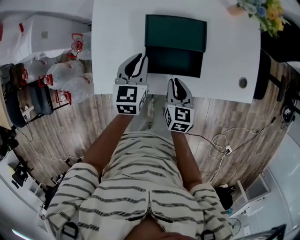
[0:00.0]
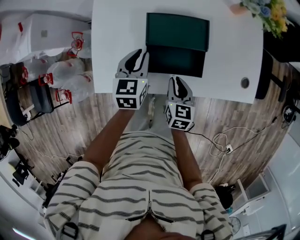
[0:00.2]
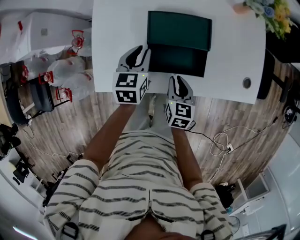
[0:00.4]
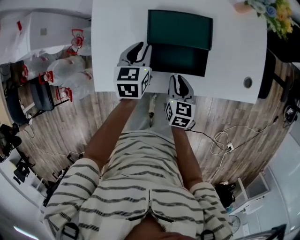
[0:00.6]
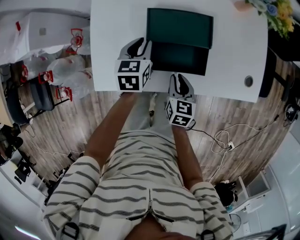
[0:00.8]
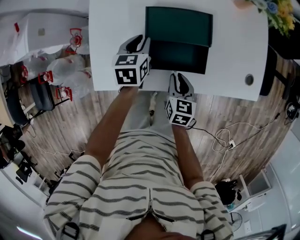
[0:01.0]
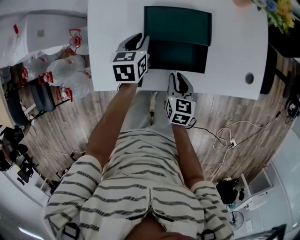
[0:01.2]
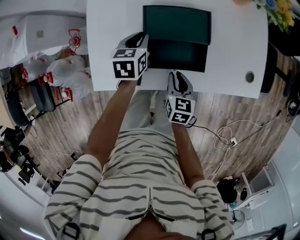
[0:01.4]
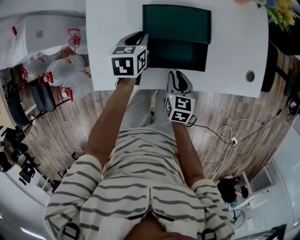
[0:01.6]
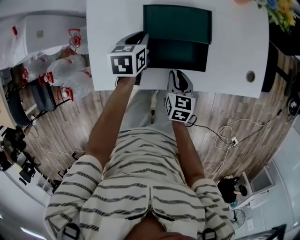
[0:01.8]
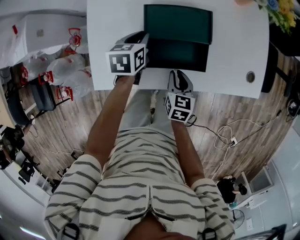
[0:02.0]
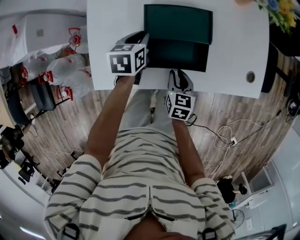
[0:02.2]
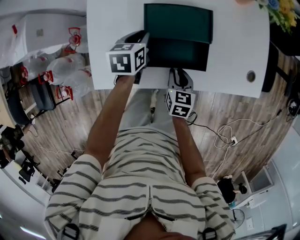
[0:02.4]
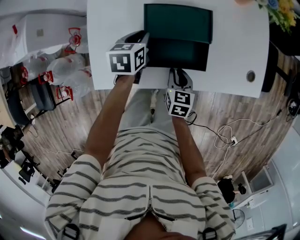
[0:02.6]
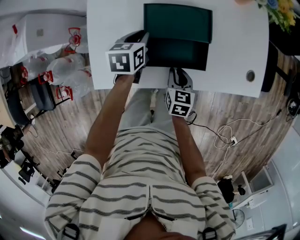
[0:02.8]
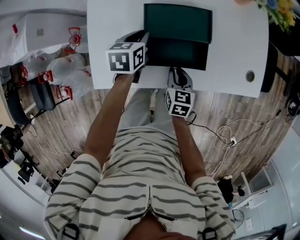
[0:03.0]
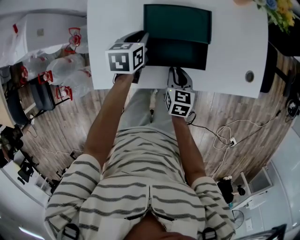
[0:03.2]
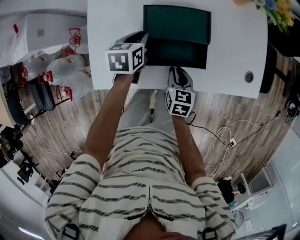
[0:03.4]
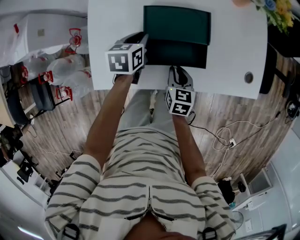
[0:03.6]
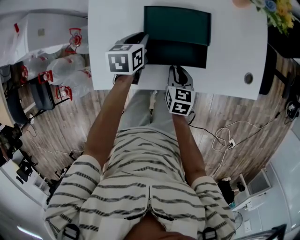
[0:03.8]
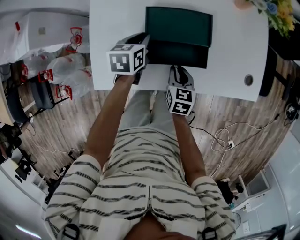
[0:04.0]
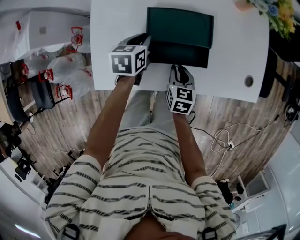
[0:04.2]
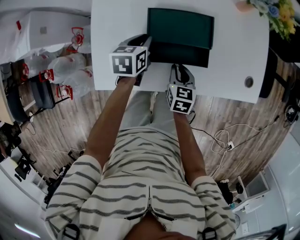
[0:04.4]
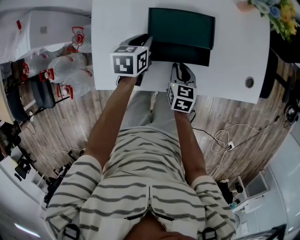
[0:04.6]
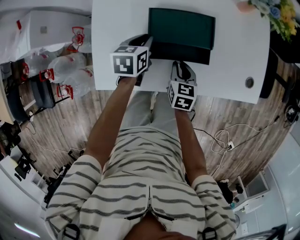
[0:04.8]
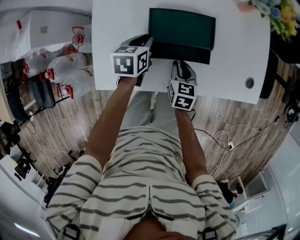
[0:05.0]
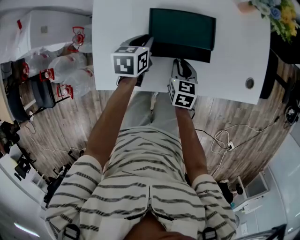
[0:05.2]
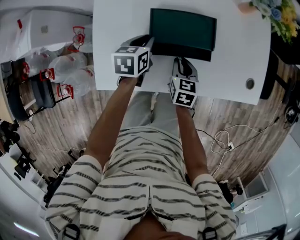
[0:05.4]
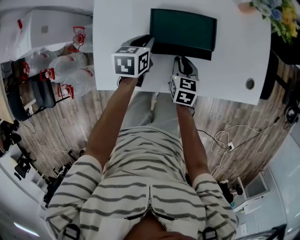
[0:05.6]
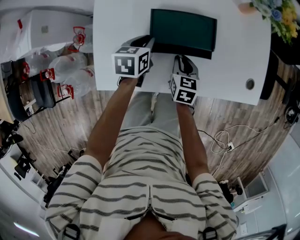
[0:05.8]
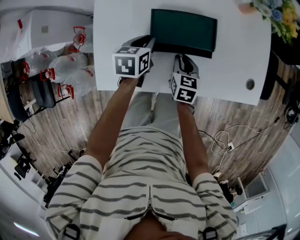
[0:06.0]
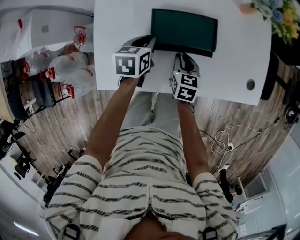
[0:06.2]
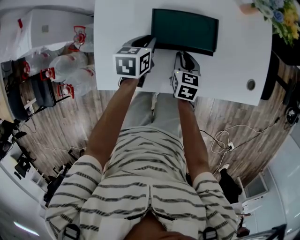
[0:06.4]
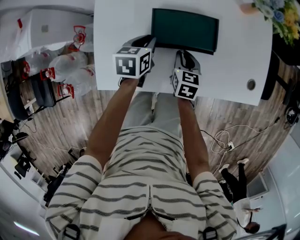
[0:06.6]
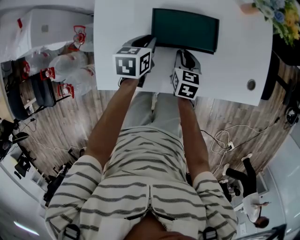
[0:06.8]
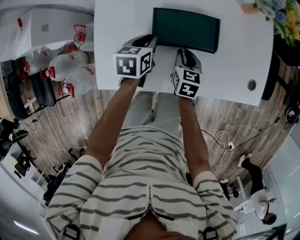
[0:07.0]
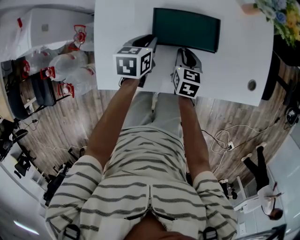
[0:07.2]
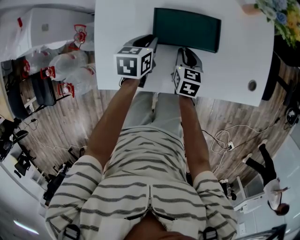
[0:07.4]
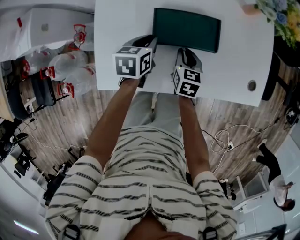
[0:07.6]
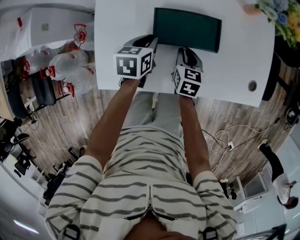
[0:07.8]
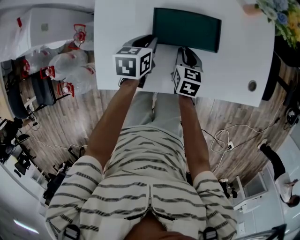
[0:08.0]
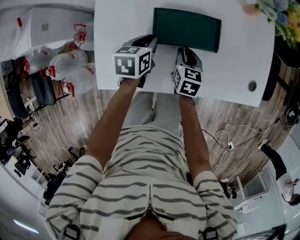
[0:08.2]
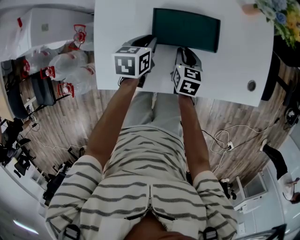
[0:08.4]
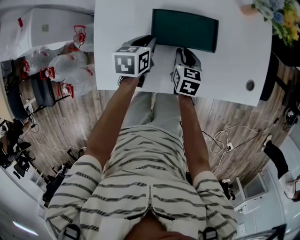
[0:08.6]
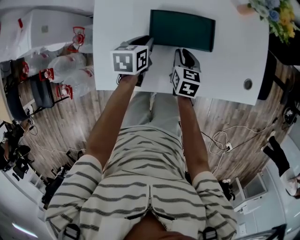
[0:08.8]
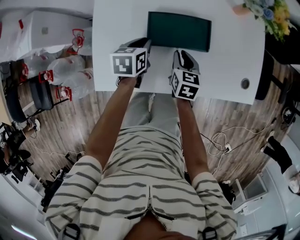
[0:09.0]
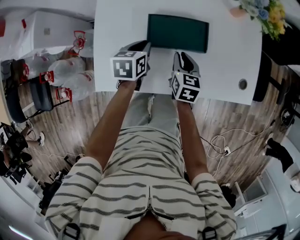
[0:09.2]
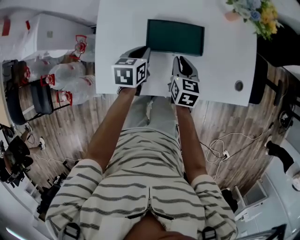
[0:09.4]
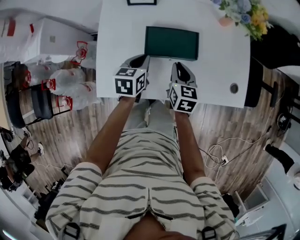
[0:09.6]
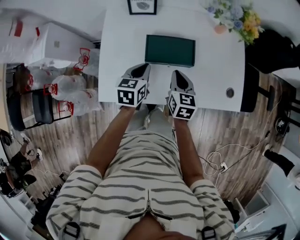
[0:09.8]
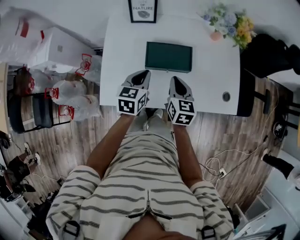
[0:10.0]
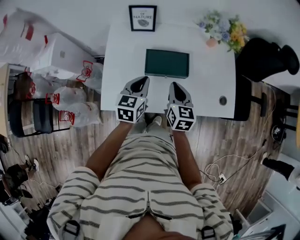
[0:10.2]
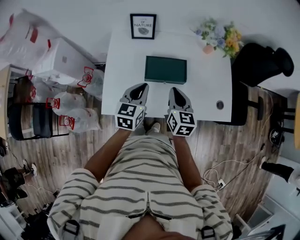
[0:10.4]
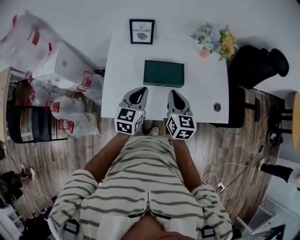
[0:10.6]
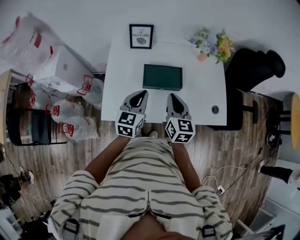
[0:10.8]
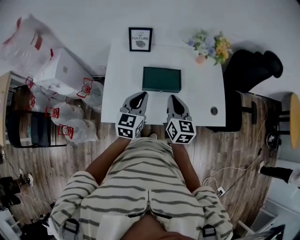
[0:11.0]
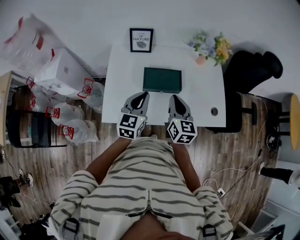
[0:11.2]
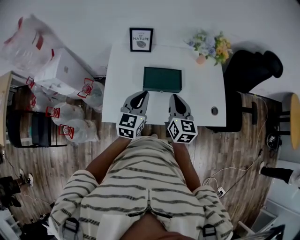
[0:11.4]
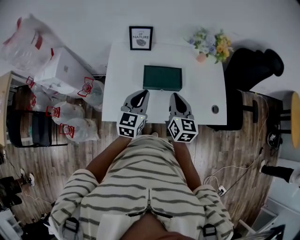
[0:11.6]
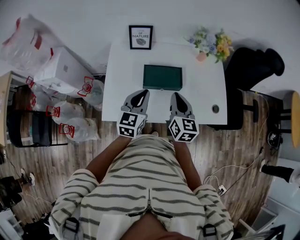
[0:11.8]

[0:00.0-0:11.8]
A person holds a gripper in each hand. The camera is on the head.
0:00.0 to 0:01.4: The left gripper goes approximately 10 cm downward and forward; the right gripper goes roughly 5 cm downward.
0:01.4 to 0:04.4: The grippers move only a little.
0:04.4 to 0:06.0: The grippers stay close to where they were, moving slightly.
0:06.0 to 0:08.8: The grippers move only a little.
0:08.8 to 0:10.4: The left gripper moves upward and backward, roughly 20 cm, and turns by approximately 30 degrees, while the right gripper shifts about 20 cm upward, rotates about 20 degrees, and closes.
0:10.4 to 0:11.8: The right gripper changes place by approximately 5 cm.

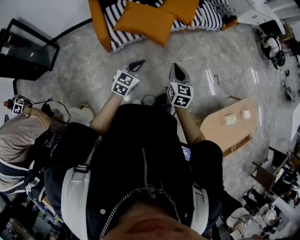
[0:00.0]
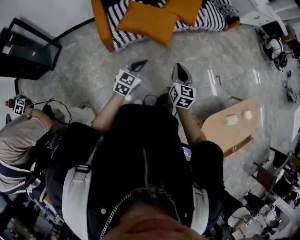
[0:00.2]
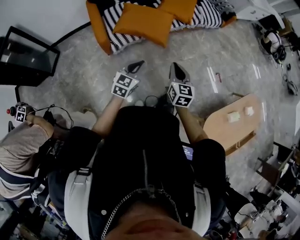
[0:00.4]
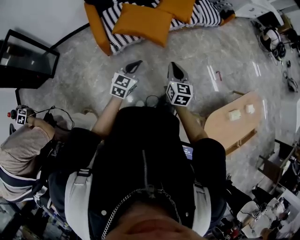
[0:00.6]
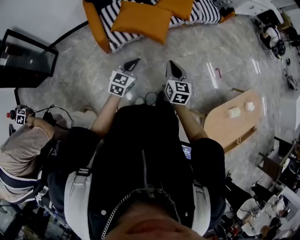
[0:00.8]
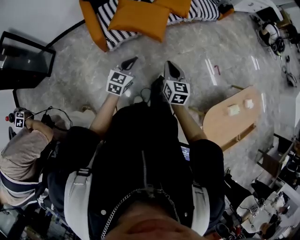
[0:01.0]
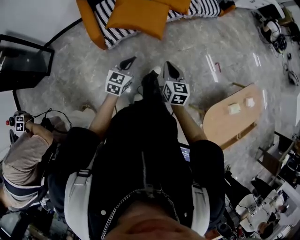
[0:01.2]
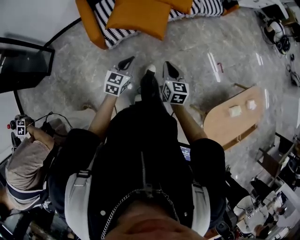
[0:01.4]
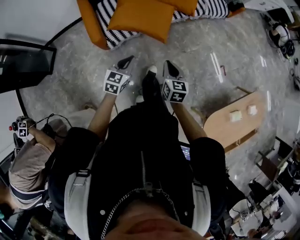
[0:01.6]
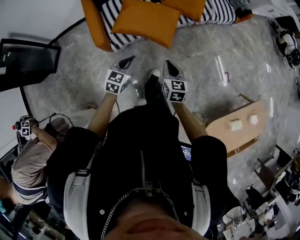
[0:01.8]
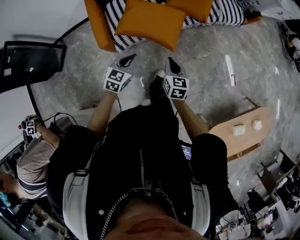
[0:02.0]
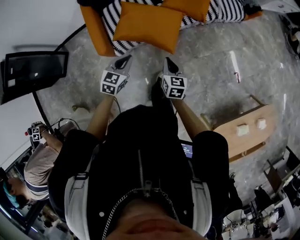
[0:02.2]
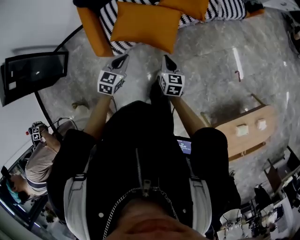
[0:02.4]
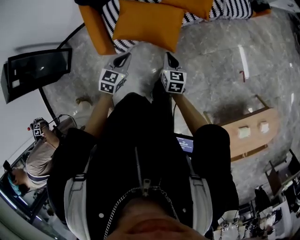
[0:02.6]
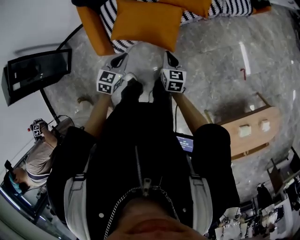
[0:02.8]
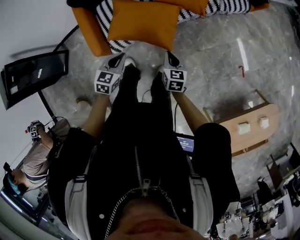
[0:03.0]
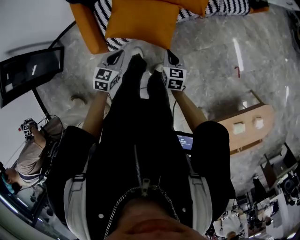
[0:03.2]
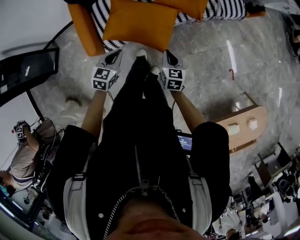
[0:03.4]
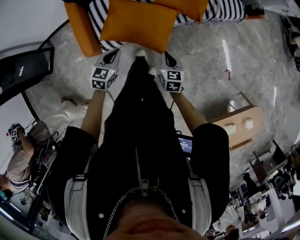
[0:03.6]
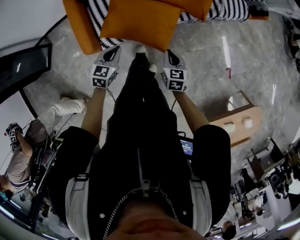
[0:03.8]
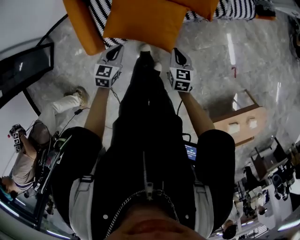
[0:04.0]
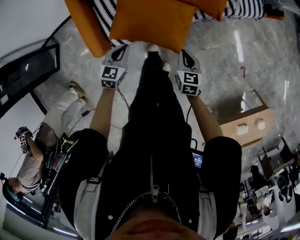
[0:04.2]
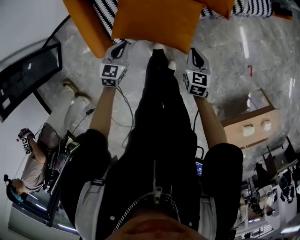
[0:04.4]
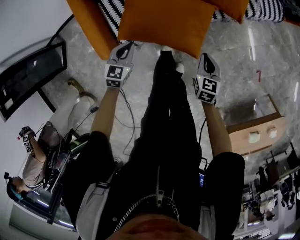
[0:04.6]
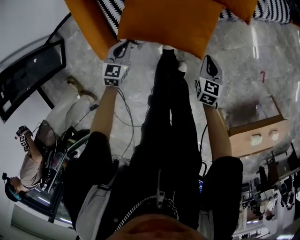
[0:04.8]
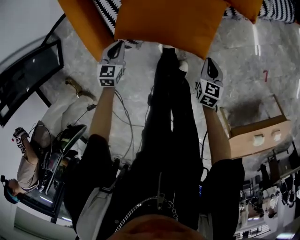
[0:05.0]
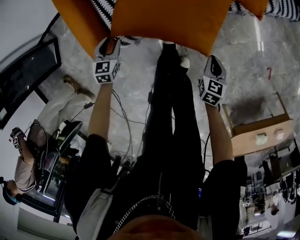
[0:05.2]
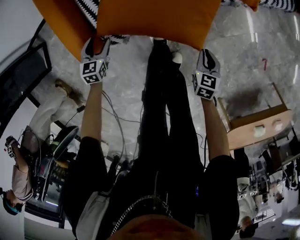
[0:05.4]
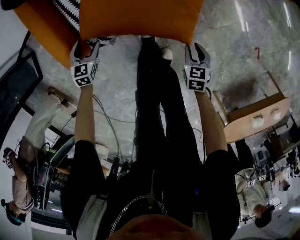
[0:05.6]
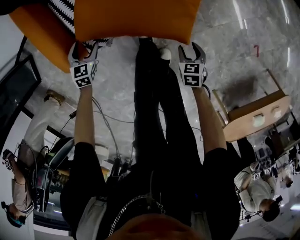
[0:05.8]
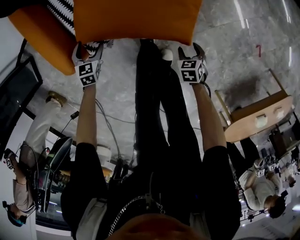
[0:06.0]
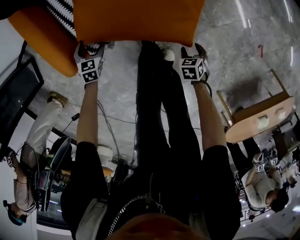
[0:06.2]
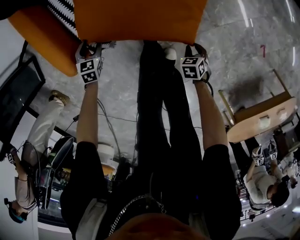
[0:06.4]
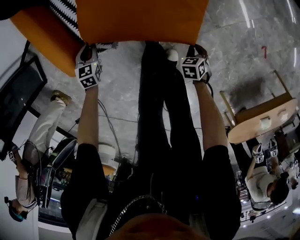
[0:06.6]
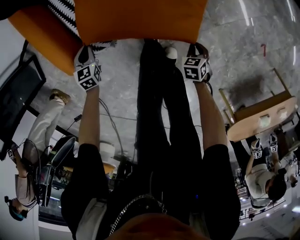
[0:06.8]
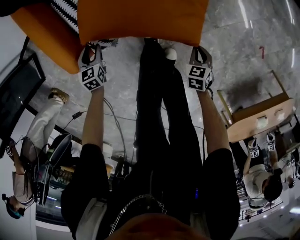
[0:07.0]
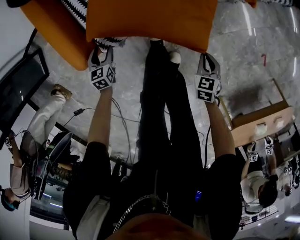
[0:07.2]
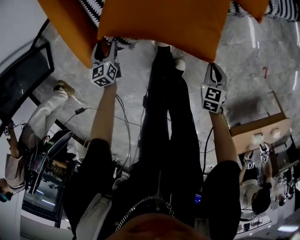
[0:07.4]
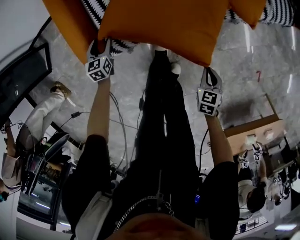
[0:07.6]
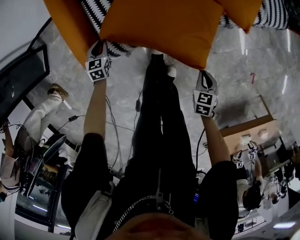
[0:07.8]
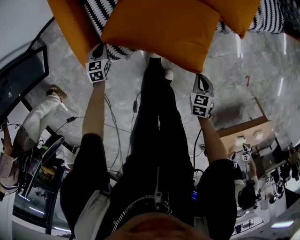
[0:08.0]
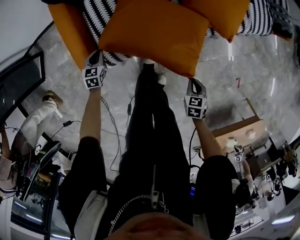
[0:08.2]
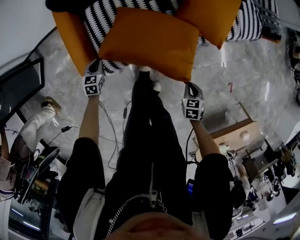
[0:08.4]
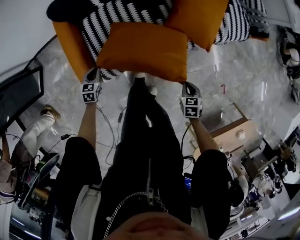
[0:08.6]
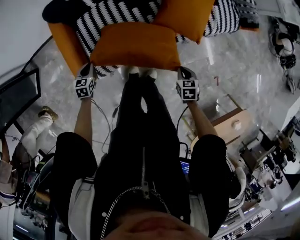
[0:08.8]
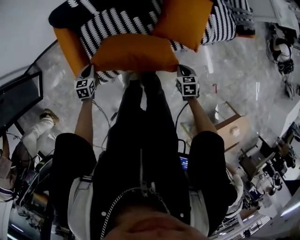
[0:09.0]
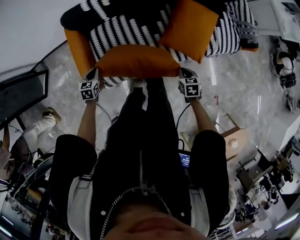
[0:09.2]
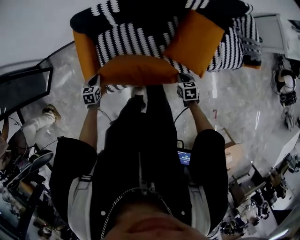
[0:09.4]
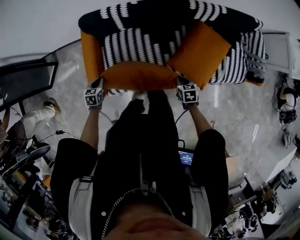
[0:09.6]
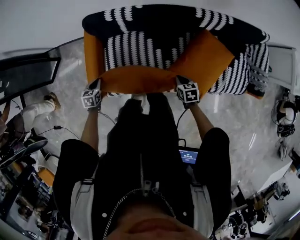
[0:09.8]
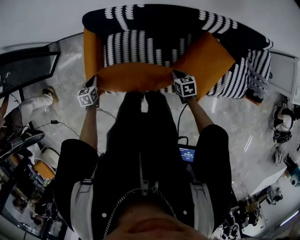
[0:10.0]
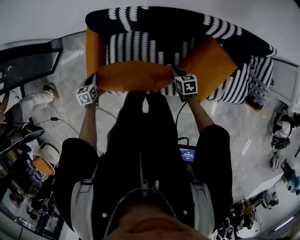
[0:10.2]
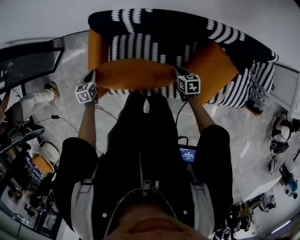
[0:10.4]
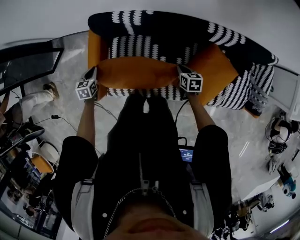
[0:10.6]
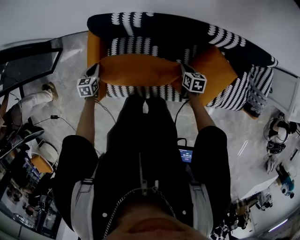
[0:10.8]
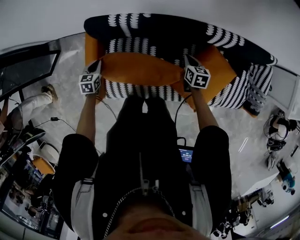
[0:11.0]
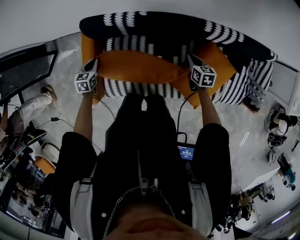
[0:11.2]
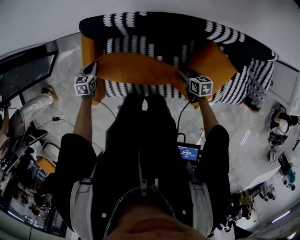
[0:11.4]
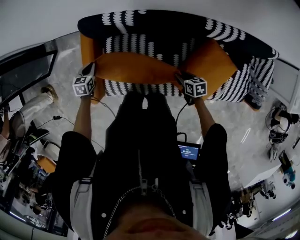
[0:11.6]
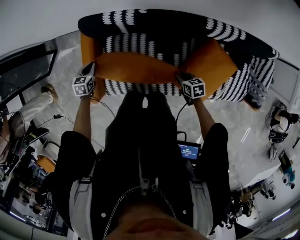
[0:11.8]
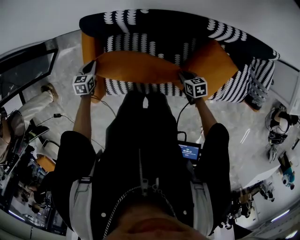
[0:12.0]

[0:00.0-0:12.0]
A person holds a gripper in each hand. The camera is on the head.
0:00.0 to 0:01.6: Both grippers travel together forward and downward, roughly 10 cm.
0:01.6 to 0:03.0: The right gripper is displaced forward and downward by about 20 cm, while the left gripper moves forward, roughly 15 cm.
0:03.0 to 0:04.4: The left gripper shifts roughly 20 cm downward, forward and to the left. The right gripper moves forward and downward, some 15 cm.
0:04.4 to 0:06.0: The two grippers go about 30 cm downward. The left gripper opens up. Meanwhile the right gripper swivels roughly 30 degrees, and opens its fingers.
0:06.0 to 0:07.6: The left gripper goes approximately 10 cm upward, rotates roughly 30 degrees, and closes, then opens again. The right gripper heads upward, covering roughly 15 cm, and closes its fingers.
0:07.6 to 0:09.0: The left gripper shifts some 20 cm upward, and closes its fingers, while the right gripper moves upward and forward, roughly 25 cm.
0:09.0 to 0:10.4: The right gripper changes place by roughly 35 cm, and changes its angle by approximately 30 degrees; the left gripper moves about 15 cm, and swivels about 30 degrees.
0:10.4 to 0:12.0: The left gripper is displaced forward and to the right by approximately 10 cm; the right gripper moves roughly 10 cm forward and comes back, and opens and closes again.
